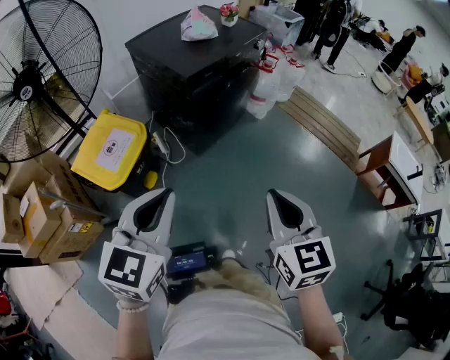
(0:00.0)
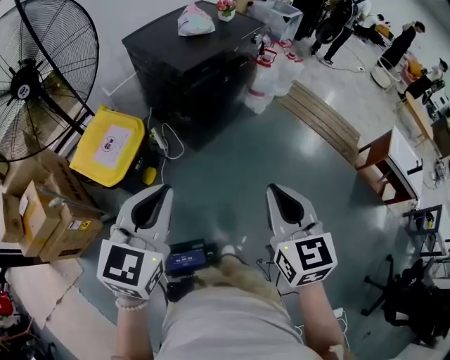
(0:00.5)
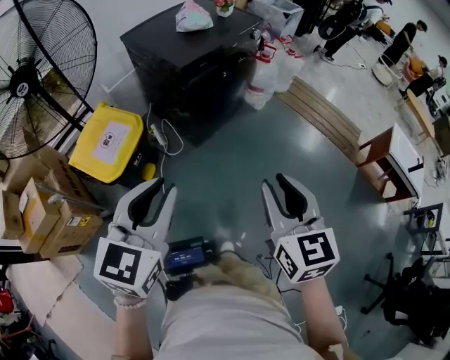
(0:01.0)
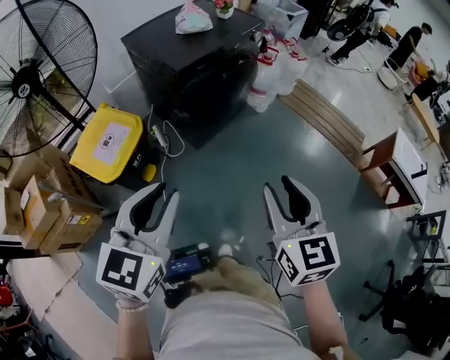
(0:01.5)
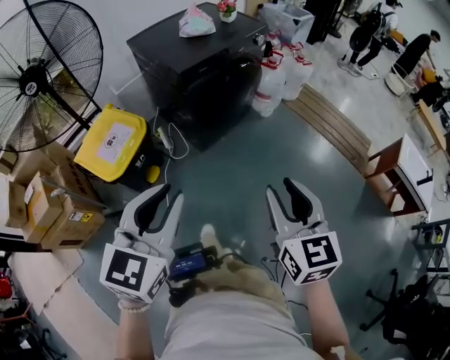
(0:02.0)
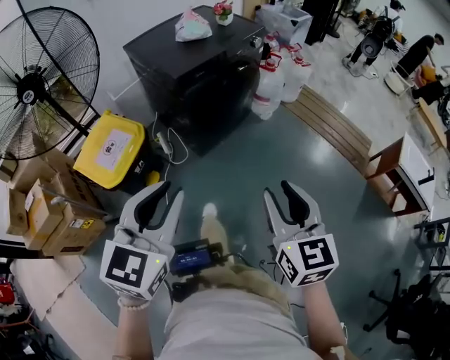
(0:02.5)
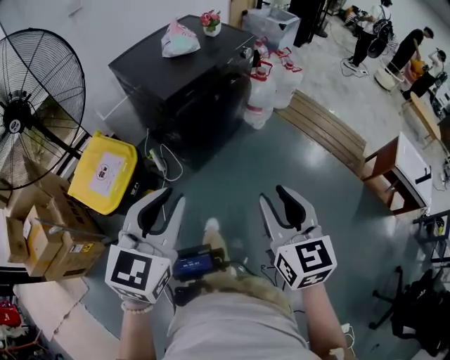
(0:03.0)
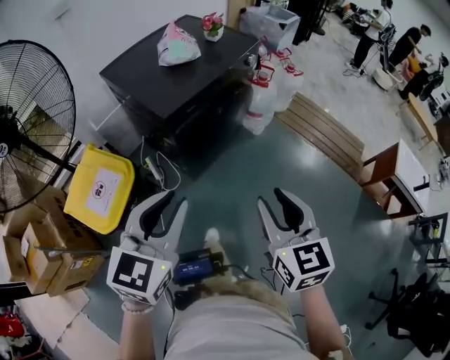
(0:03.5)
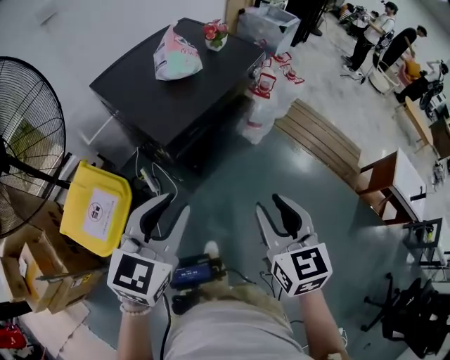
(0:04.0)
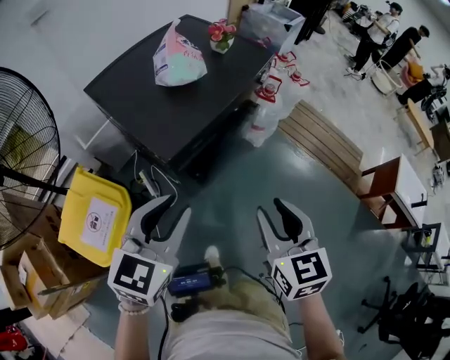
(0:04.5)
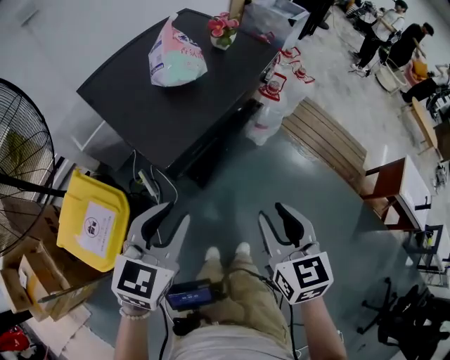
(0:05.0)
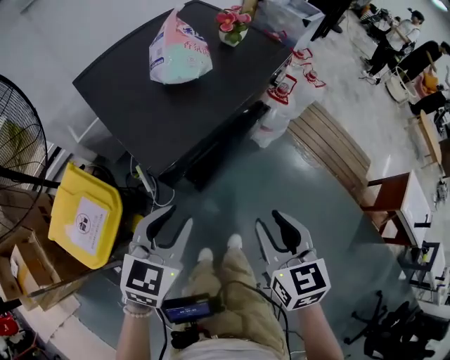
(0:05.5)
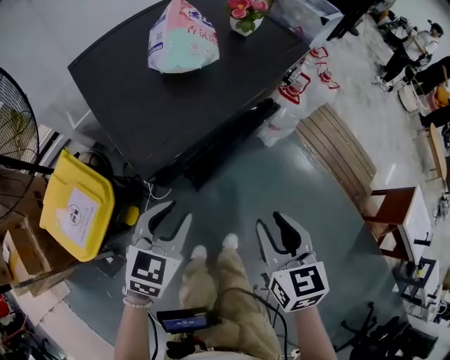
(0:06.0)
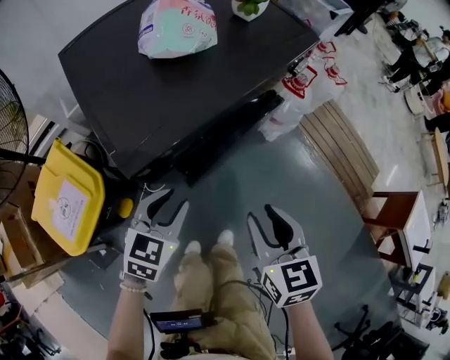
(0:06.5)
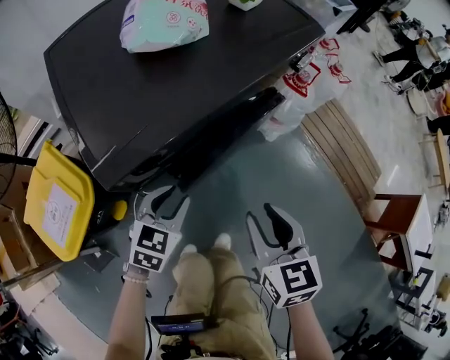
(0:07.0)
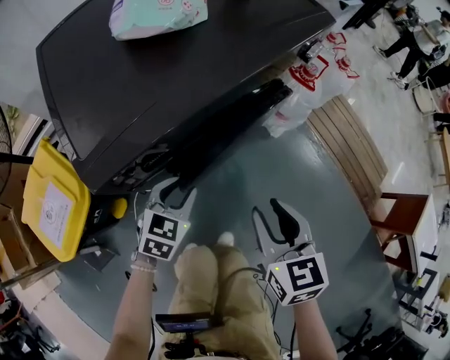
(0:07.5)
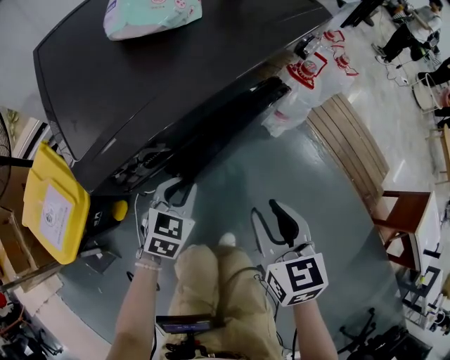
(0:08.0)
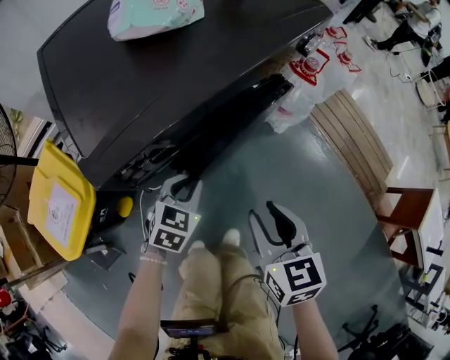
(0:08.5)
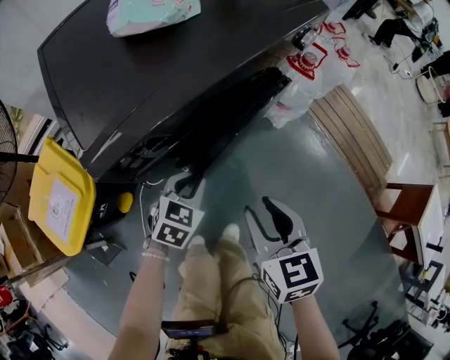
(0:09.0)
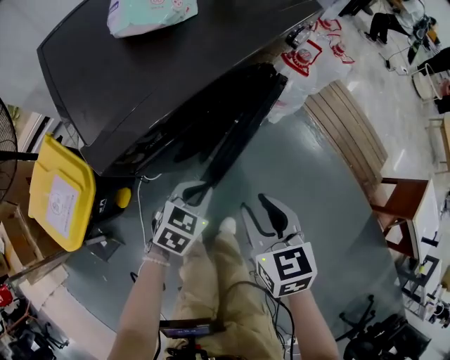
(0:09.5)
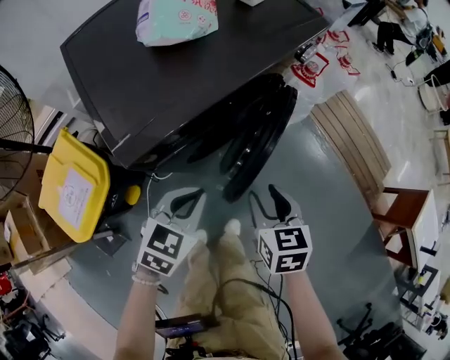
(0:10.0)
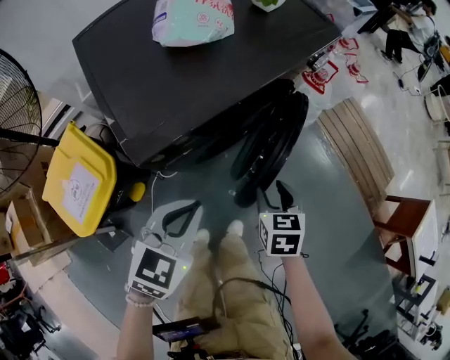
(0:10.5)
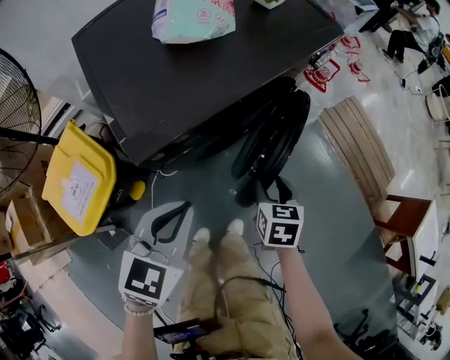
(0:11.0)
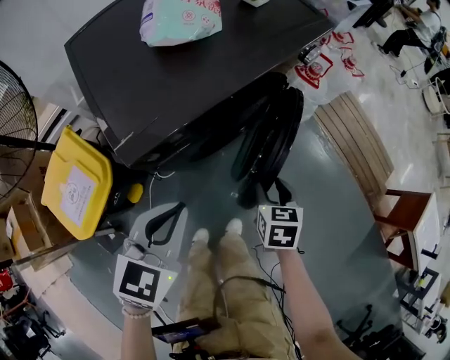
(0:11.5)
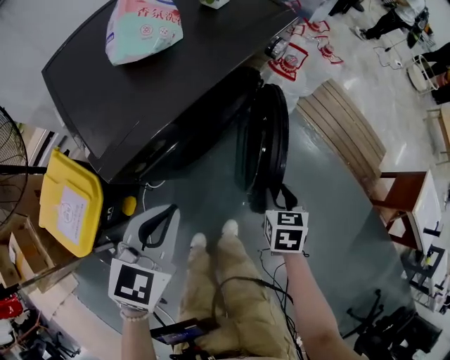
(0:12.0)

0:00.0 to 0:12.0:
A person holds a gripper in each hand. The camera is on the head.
0:00.0 to 0:02.0: The two grippers go approximately 10 cm to the right. The right gripper opens its fingers.
0:02.0 to 0:04.0: Both grippers travel together forward, about 30 cm.
0:04.0 to 0:06.0: The right gripper travels forward and downward by some 20 cm. The left gripper travels downward and forward by approximately 25 cm.
0:06.0 to 0:08.0: The left gripper moves downward and forward, about 20 cm, while the right gripper moves downward and forward, roughly 15 cm.
0:08.0 to 0:10.0: The left gripper is displaced upward and backward by roughly 15 cm.
0:10.0 to 0:12.0: The left gripper heads upward, covering about 10 cm; the right gripper heads to the right and downward, covering roughly 10 cm.

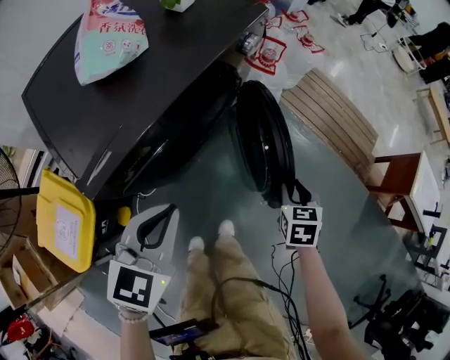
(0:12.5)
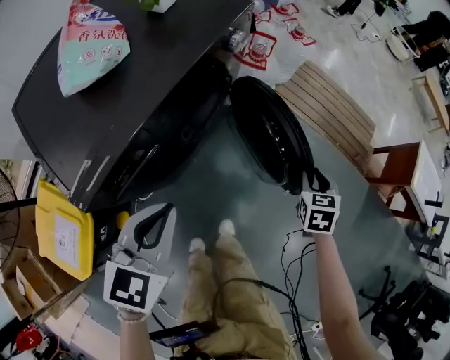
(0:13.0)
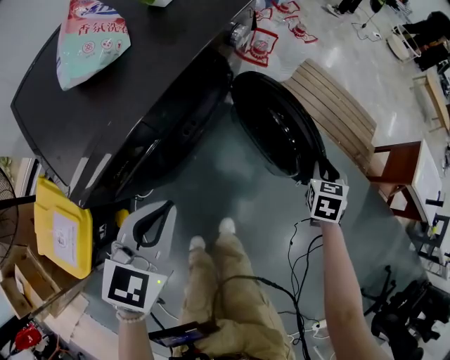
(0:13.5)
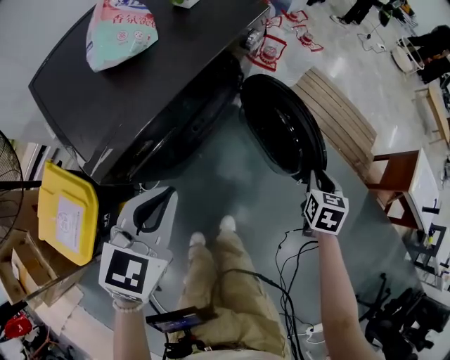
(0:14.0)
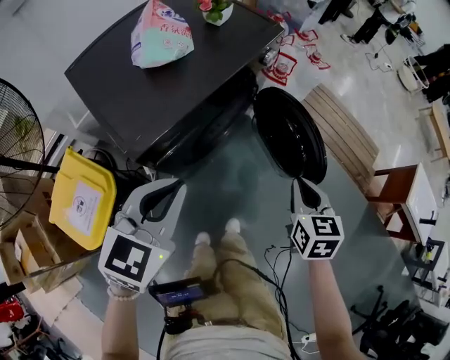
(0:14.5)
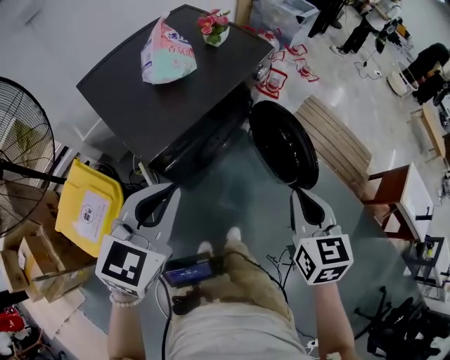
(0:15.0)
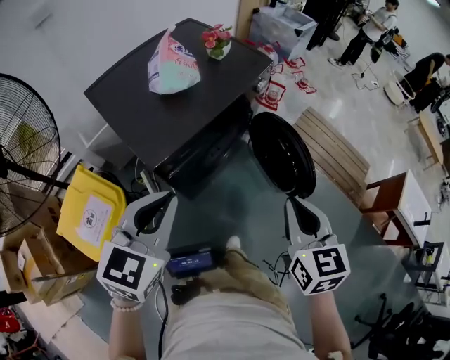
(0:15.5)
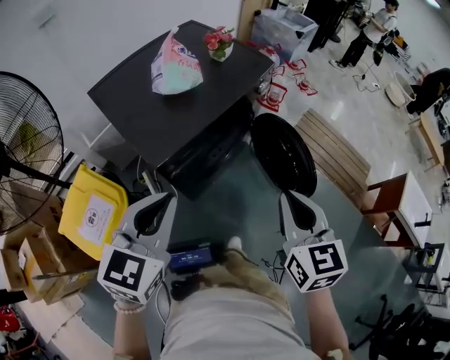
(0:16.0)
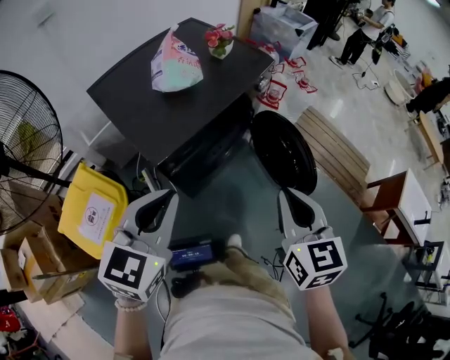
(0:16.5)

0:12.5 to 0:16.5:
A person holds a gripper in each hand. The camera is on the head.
0:12.5 to 0:14.5: The left gripper goes about 10 cm upward; the right gripper goes roughly 15 cm upward, and closes.
0:14.5 to 0:16.5: The left gripper moves upward and backward, roughly 10 cm. The right gripper is displaced upward, to the left and backward by approximately 20 cm.

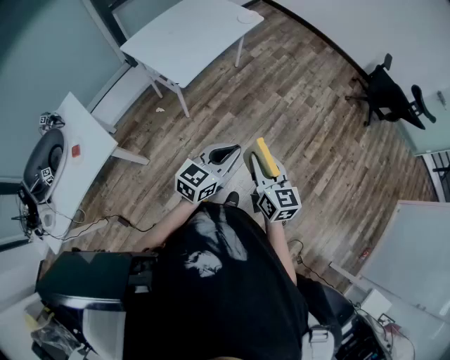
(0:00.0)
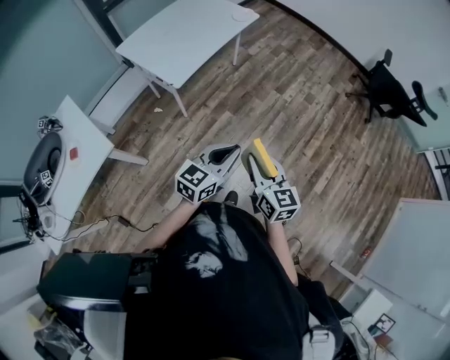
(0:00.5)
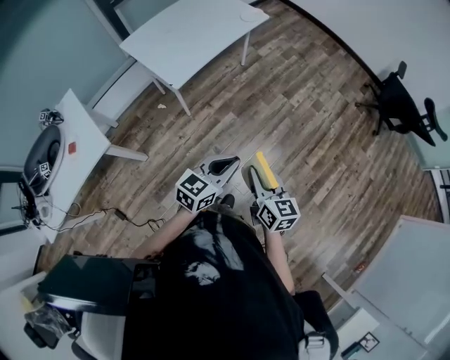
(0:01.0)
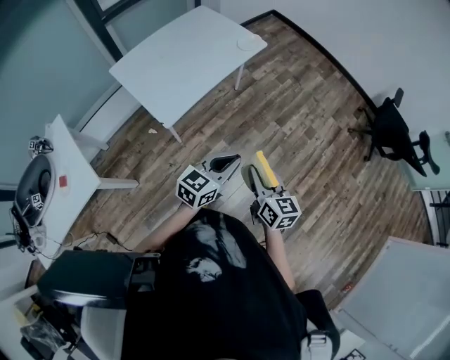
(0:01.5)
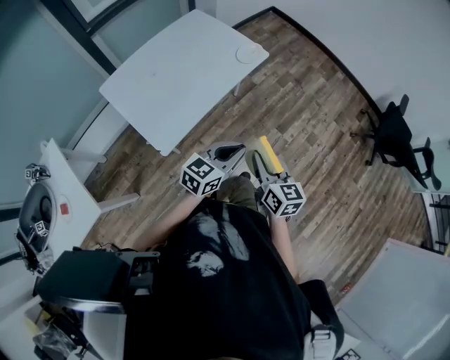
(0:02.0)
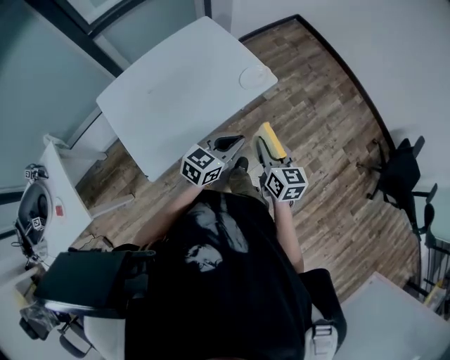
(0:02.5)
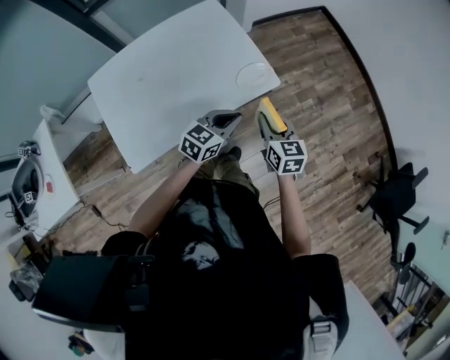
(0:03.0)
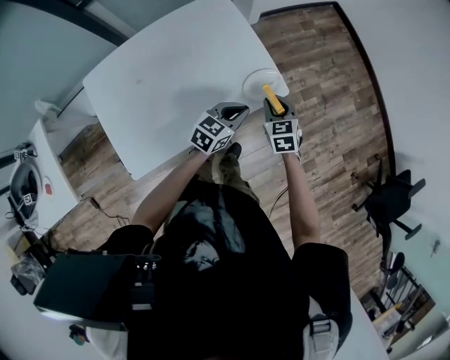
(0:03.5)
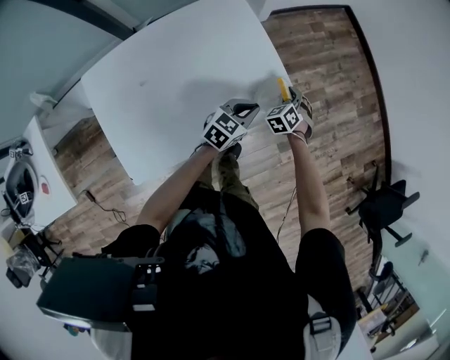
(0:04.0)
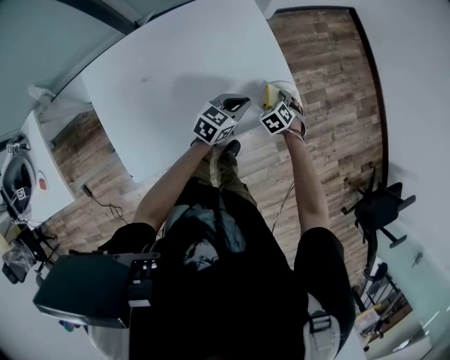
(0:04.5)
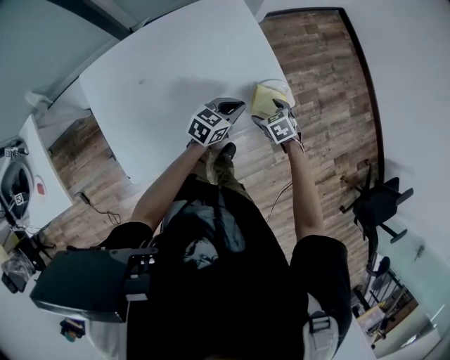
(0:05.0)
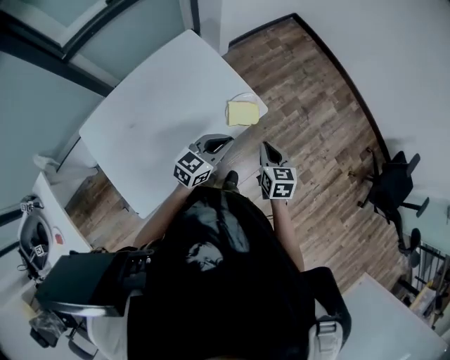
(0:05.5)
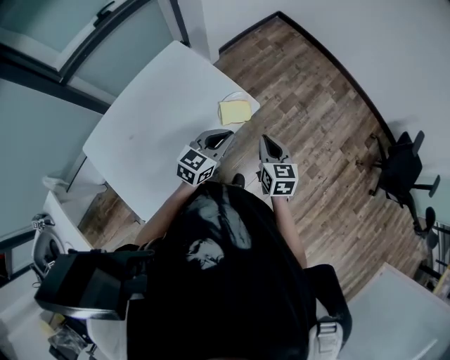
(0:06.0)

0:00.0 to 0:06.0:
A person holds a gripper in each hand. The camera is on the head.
0:00.0 to 0:02.0: Both grippers are carried forward, about 40 cm.
0:02.0 to 0:04.0: The two grippers travel together, forward, roughly 60 cm. The right gripper shifts approximately 25 cm downward, and rolls counterclockwise, seen from behind, by about 60 degrees. The left gripper swivels about 20 degrees.
0:04.0 to 0:06.0: The left gripper travels upward by roughly 15 cm; the right gripper shifts by approximately 30 cm, rolls clockwise, seen from behind, by some 60 degrees, and opens, then closes again.

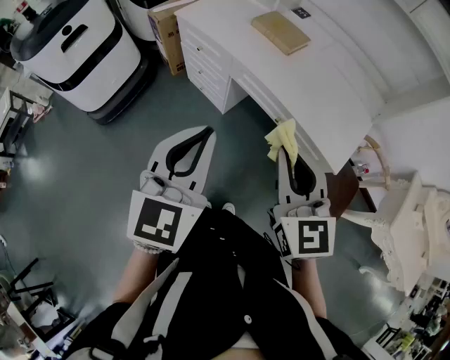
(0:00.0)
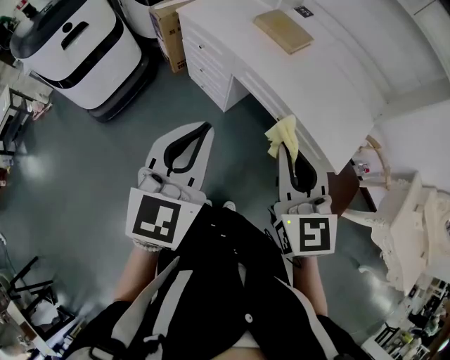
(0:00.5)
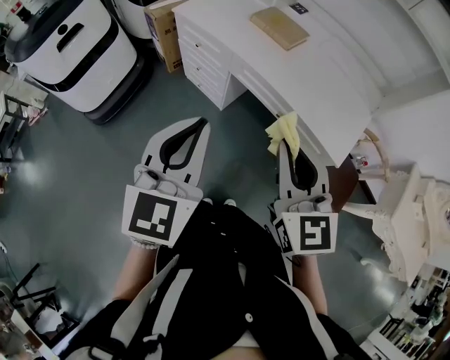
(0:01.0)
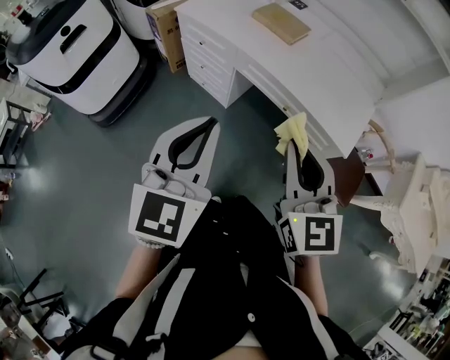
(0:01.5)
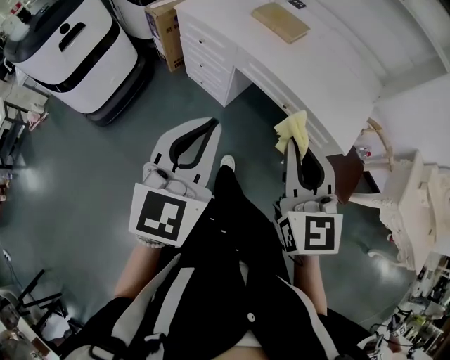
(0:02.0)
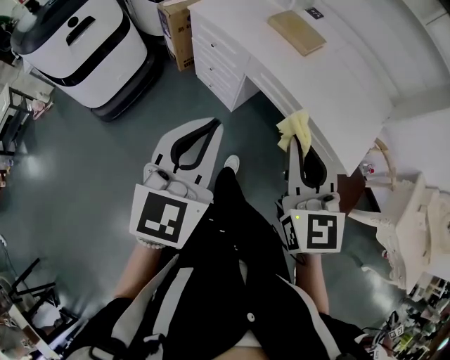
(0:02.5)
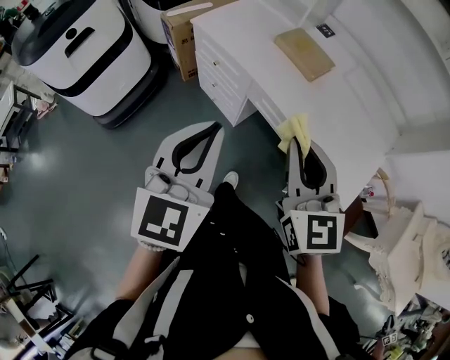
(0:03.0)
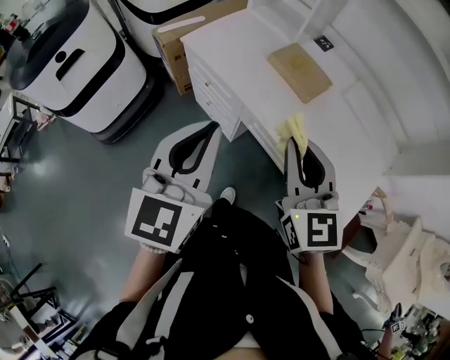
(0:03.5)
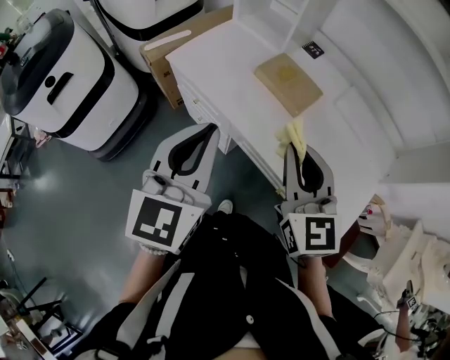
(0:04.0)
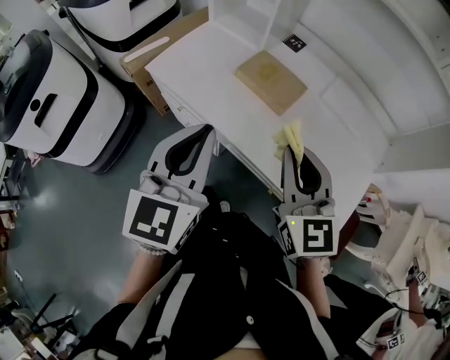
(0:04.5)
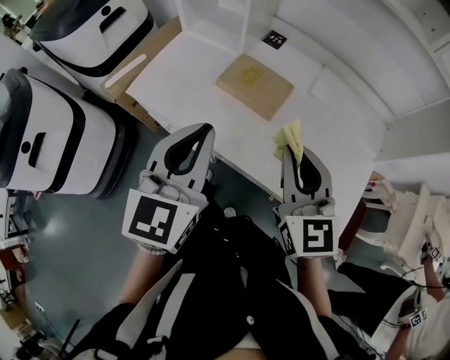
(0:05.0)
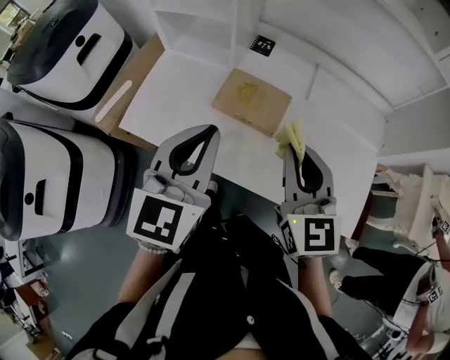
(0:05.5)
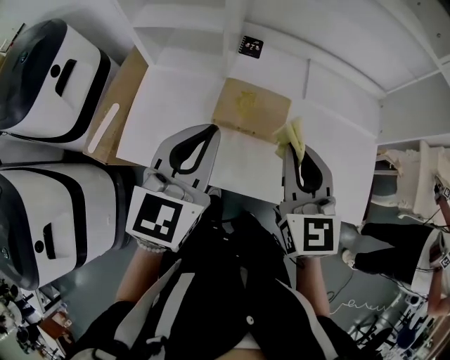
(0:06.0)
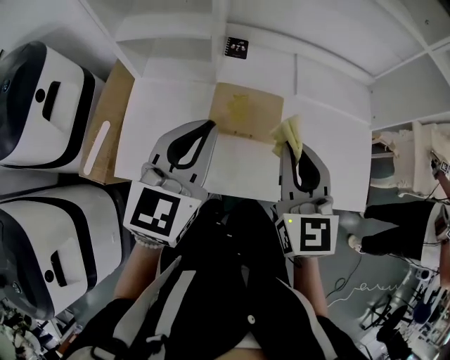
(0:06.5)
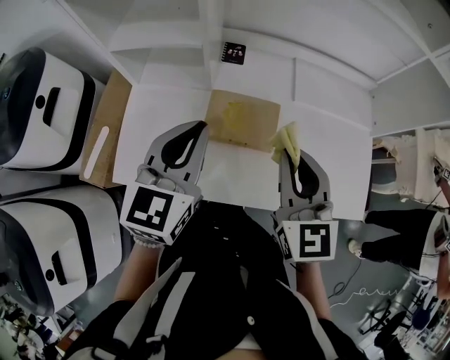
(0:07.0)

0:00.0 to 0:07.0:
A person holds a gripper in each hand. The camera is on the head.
0:00.0 to 0:02.0: The right gripper changes place by approximately 5 cm, while the left gripper changes place by roughly 5 cm.
0:02.0 to 0:03.5: Both grippers travel together forward, some 25 cm.
0:03.5 to 0:05.0: Both grippers travel together forward and to the right, roughly 15 cm.
0:05.0 to 0:07.0: The left gripper changes place by roughly 20 cm, and turns by roughly 30 degrees. The right gripper changes place by about 15 cm, and swivels about 20 degrees.
